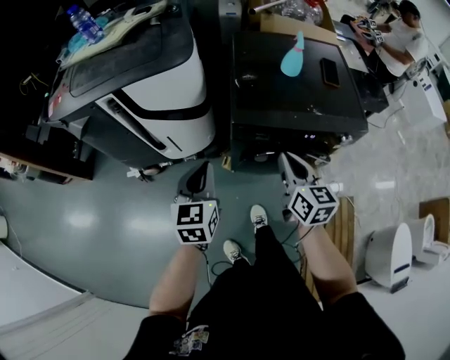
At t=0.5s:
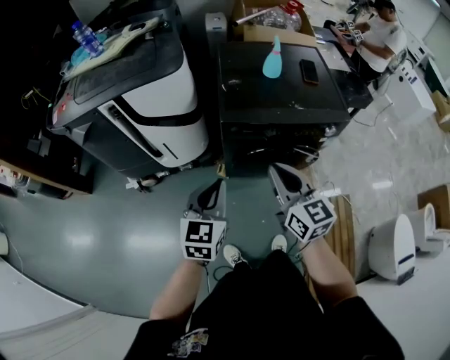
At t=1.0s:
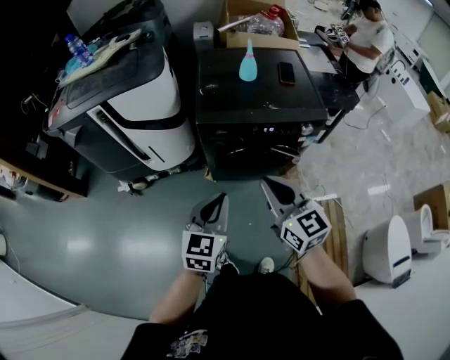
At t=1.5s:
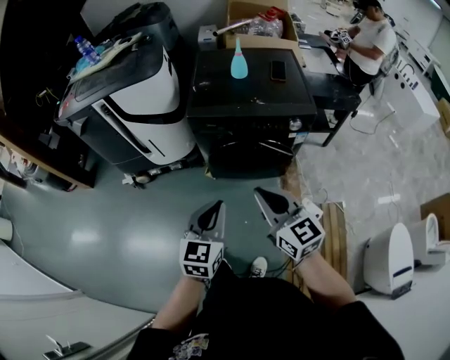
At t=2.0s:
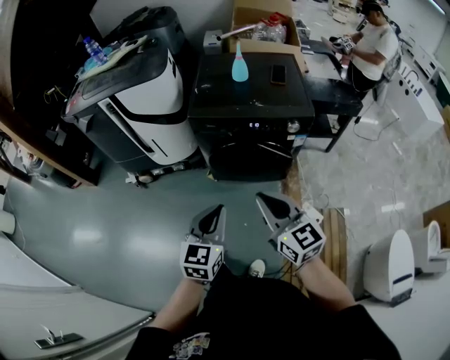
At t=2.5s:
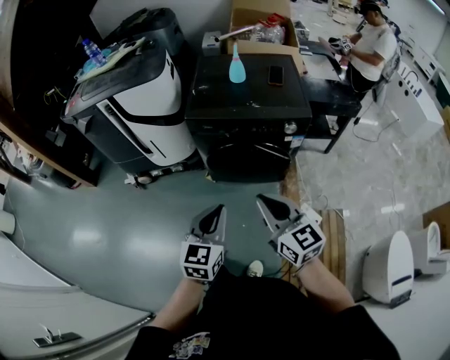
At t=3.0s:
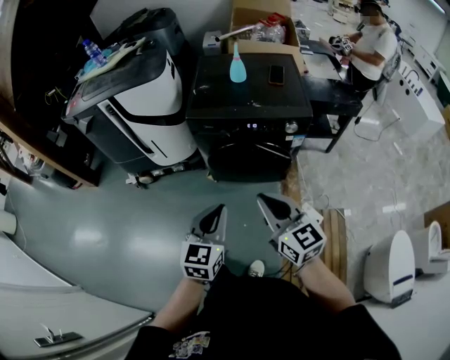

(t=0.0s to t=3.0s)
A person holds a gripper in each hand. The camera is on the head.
t=0.0s - t=1.5s: The two grippers go roughly 35 cm backward and to the right. The right gripper rotates roughly 30 degrees.
t=1.5s - t=3.0s: The left gripper shifts by roughly 5 cm. The right gripper shifts by some 5 cm.

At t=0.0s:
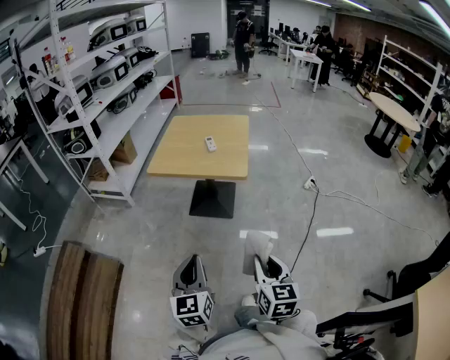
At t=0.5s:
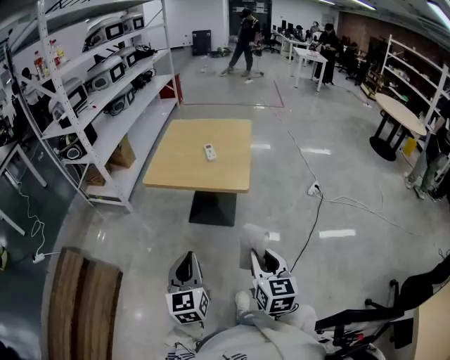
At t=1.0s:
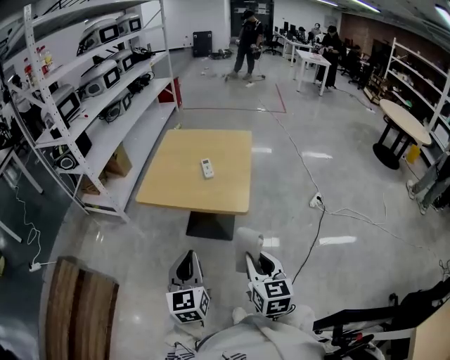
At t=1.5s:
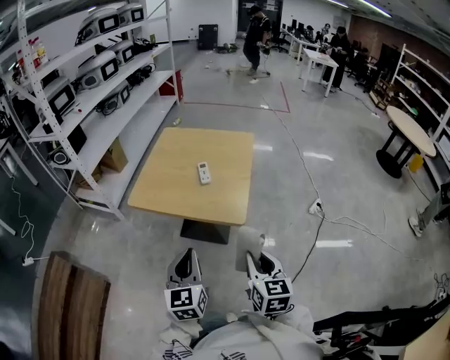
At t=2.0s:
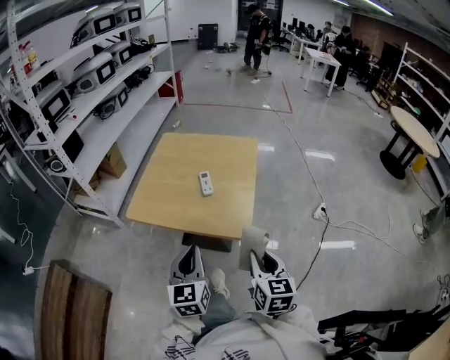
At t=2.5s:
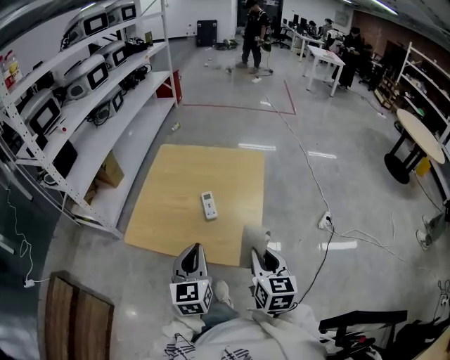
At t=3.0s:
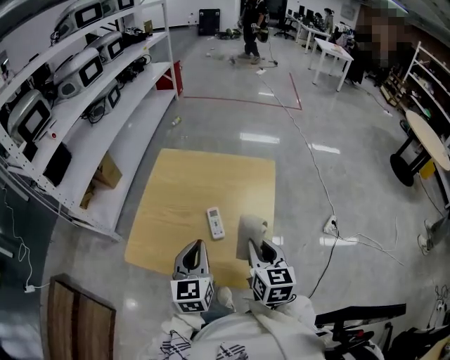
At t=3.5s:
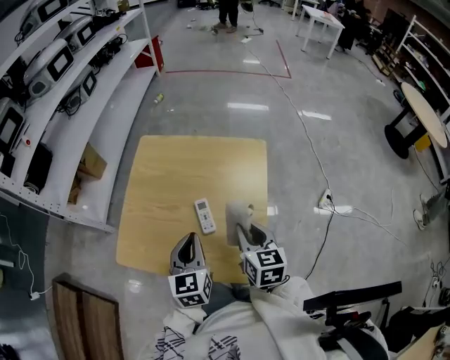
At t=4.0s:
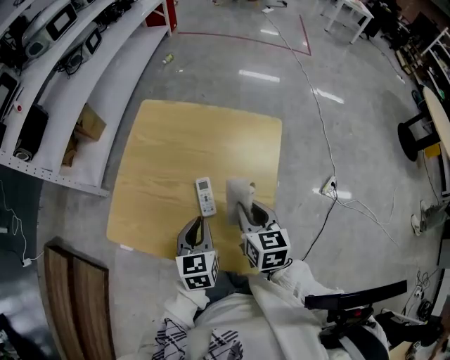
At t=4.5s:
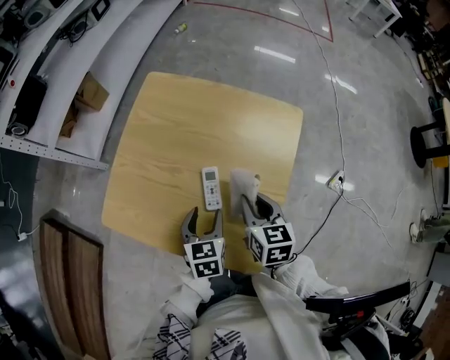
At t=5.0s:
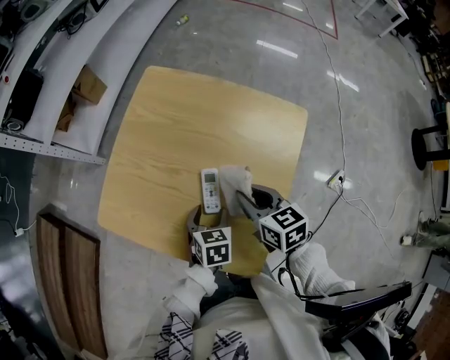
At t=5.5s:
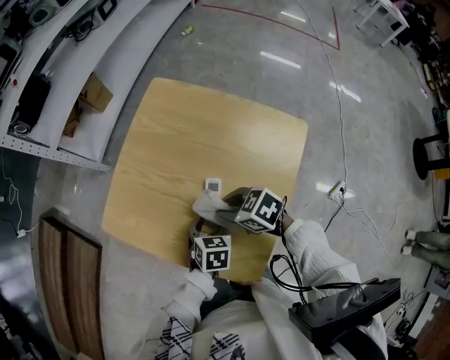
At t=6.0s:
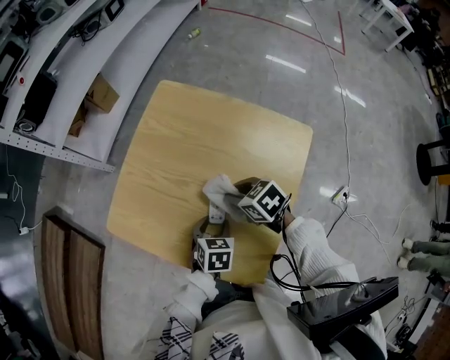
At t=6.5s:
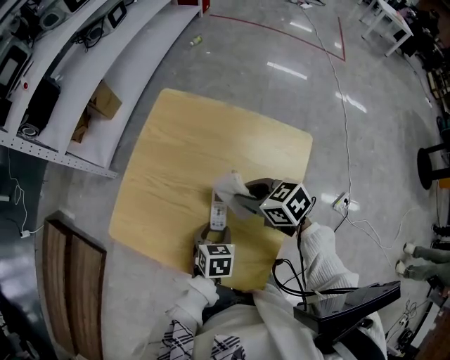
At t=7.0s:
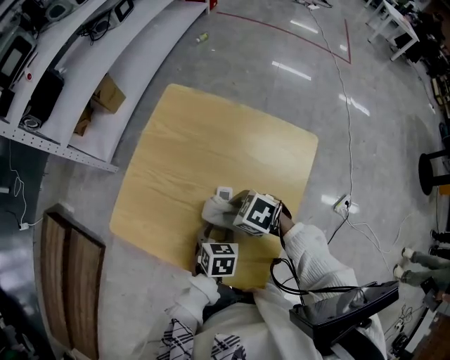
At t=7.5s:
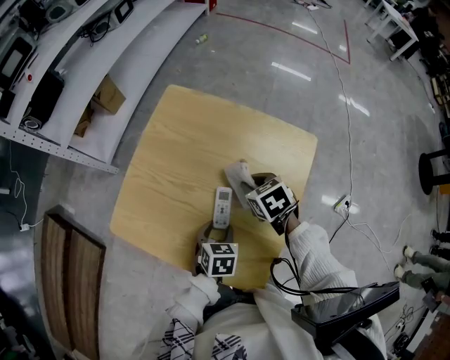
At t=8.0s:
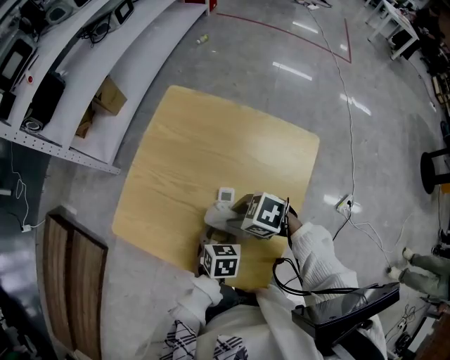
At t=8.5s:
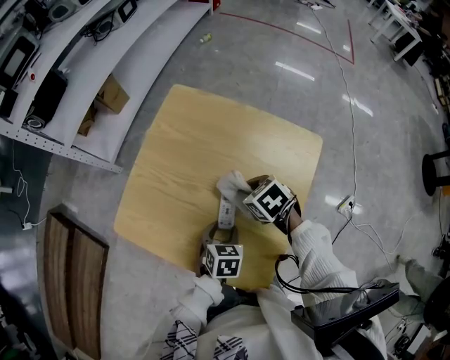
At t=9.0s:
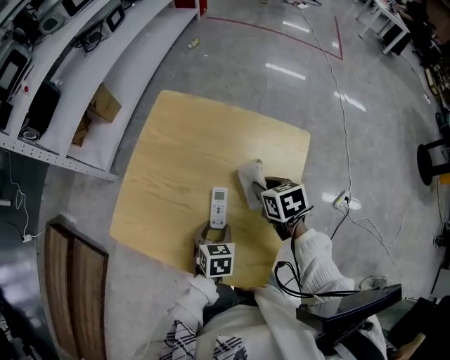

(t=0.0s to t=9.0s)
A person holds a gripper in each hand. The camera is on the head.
t=0.0s - t=2.0s: Both grippers move forward, roughly 35 cm.
t=2.0s - t=4.5s: The right gripper heads forward, covering approximately 35 cm, and changes its angle by some 20 degrees. The left gripper is displaced forward and downward by some 35 cm, tips its fingers downward by roughly 30 degrees, and opens its fingers.
t=4.5s - t=7.0s: The left gripper moves downward, approximately 5 cm; the right gripper swings up and down, about 5 cm each way, with 2 reversals, and swivels approximately 70 degrees.
t=7.0s - t=9.0s: The right gripper moves approximately 15 cm, and turns by about 50 degrees.

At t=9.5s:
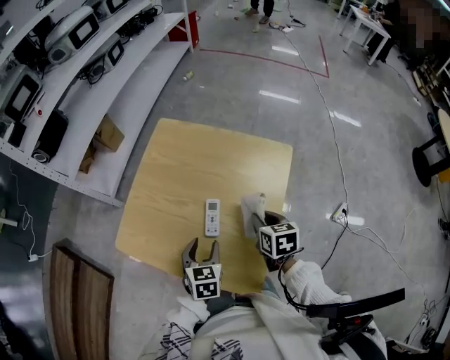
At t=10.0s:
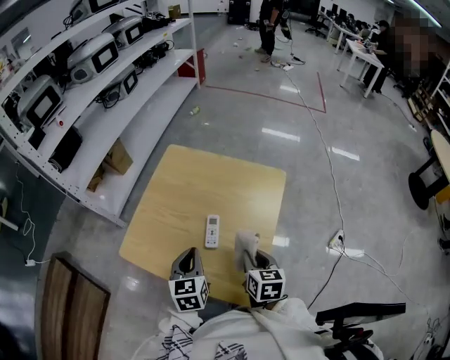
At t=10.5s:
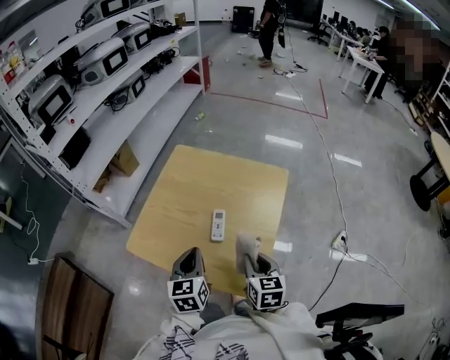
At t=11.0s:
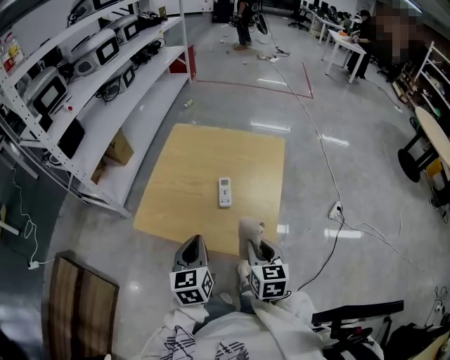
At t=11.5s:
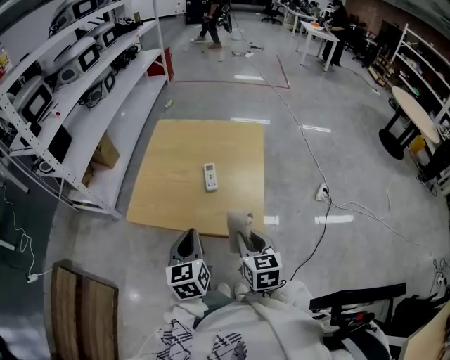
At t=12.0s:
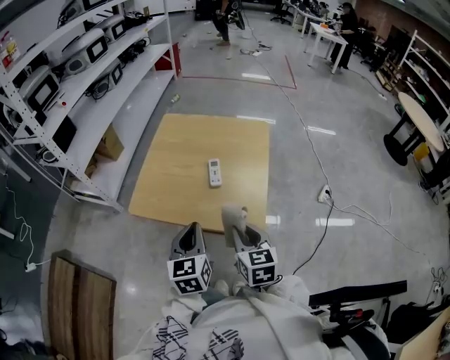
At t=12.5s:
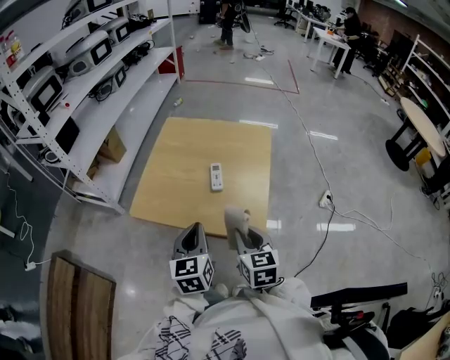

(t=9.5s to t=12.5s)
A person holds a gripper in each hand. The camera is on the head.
t=9.5s - t=11.0s: The right gripper moves backward and to the left, some 25 cm, and turns by about 20 degrees, while the left gripper travels upward, backward and to the left by roughly 20 cm, swivels approximately 20 degrees, and closes up.
t=11.0s - t=12.5s: The left gripper changes place by roughly 5 cm, while the right gripper changes place by about 5 cm.

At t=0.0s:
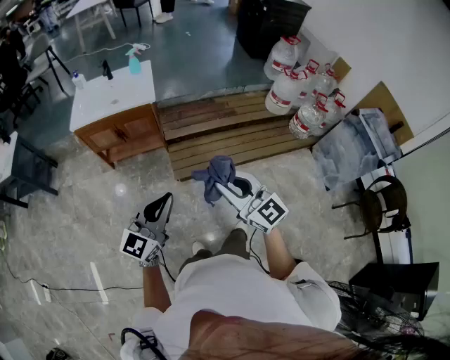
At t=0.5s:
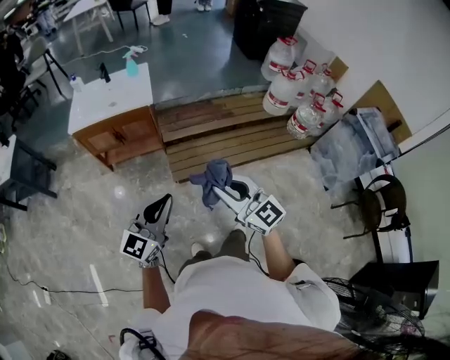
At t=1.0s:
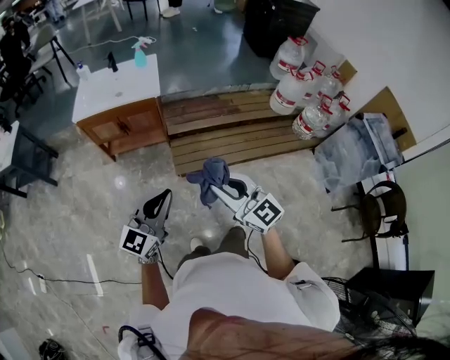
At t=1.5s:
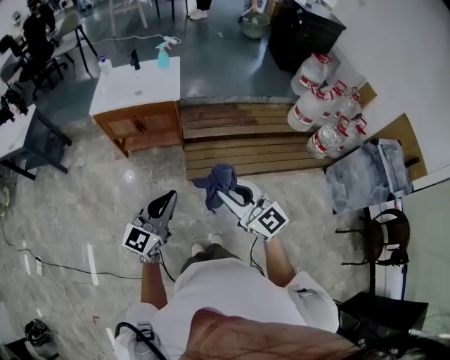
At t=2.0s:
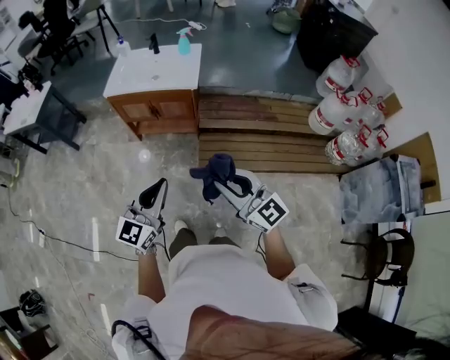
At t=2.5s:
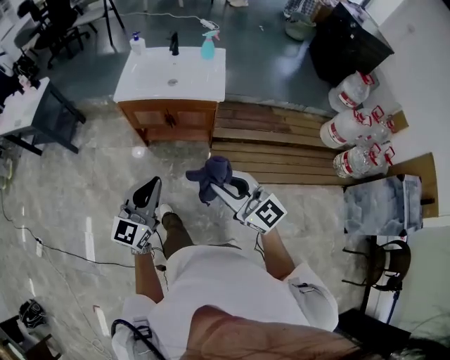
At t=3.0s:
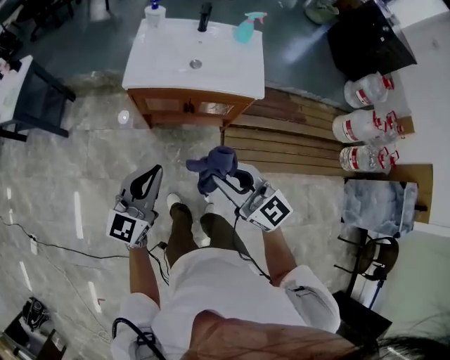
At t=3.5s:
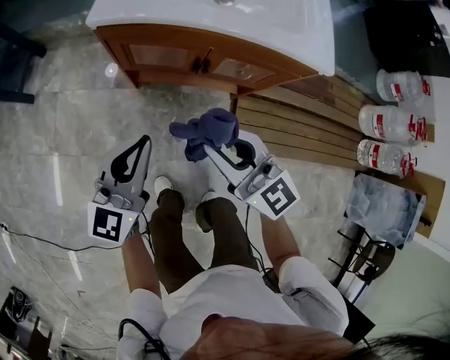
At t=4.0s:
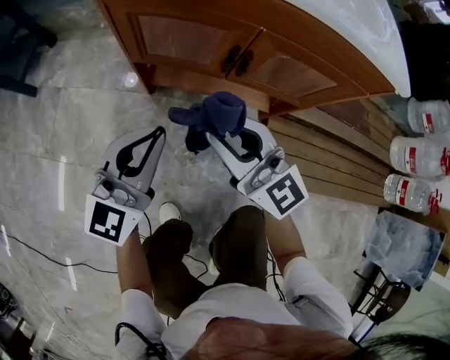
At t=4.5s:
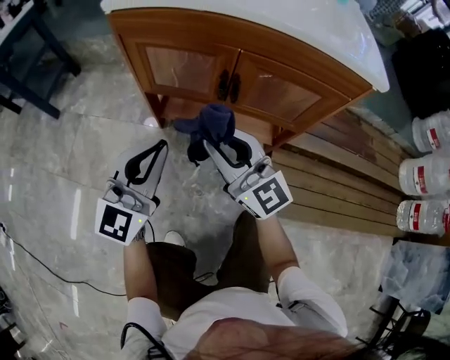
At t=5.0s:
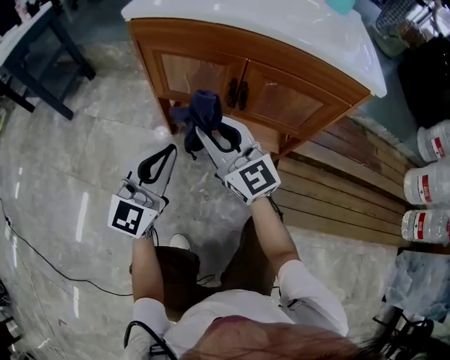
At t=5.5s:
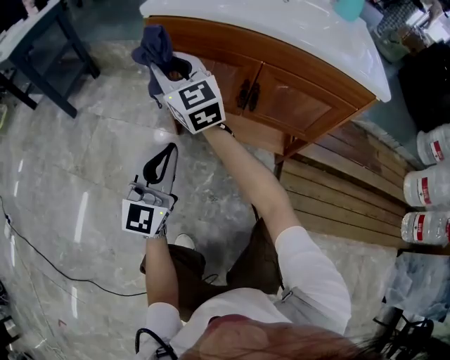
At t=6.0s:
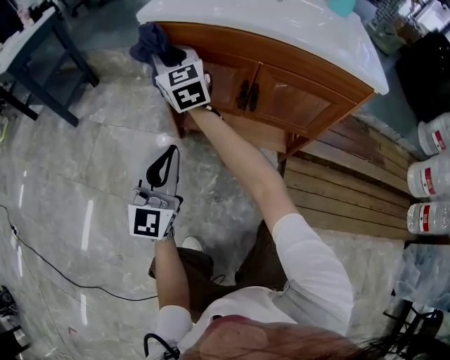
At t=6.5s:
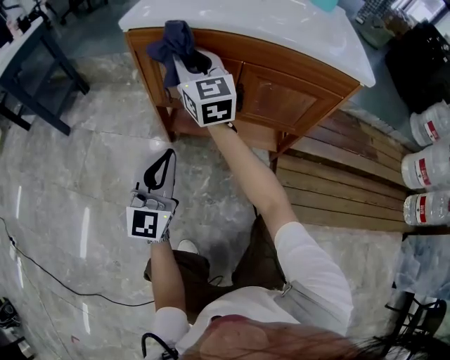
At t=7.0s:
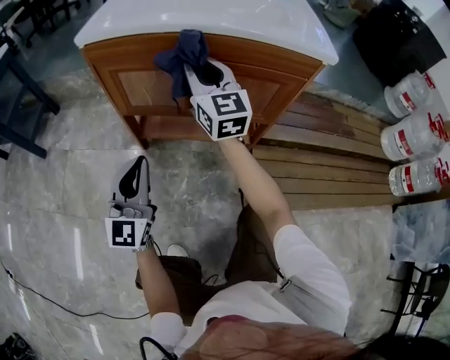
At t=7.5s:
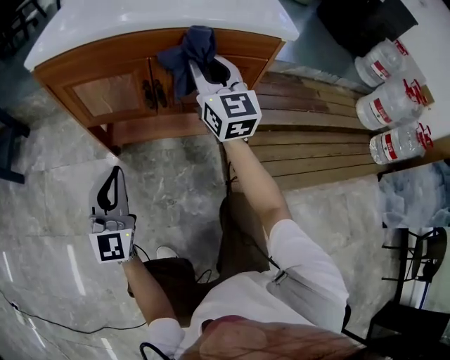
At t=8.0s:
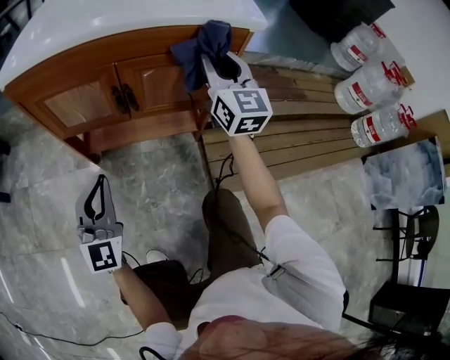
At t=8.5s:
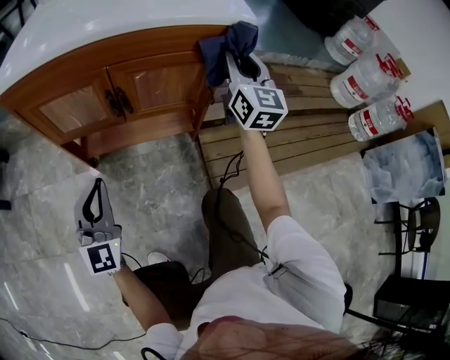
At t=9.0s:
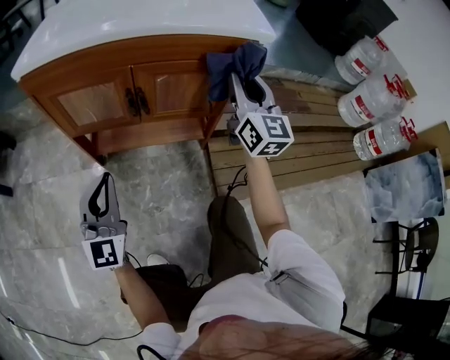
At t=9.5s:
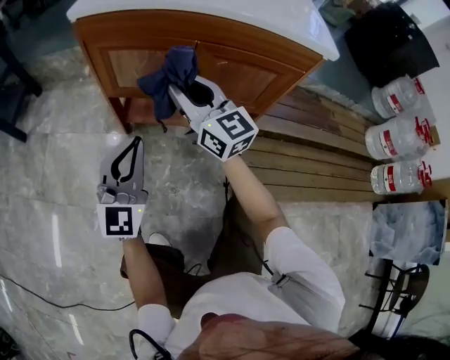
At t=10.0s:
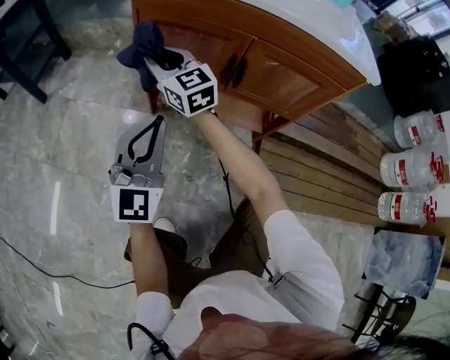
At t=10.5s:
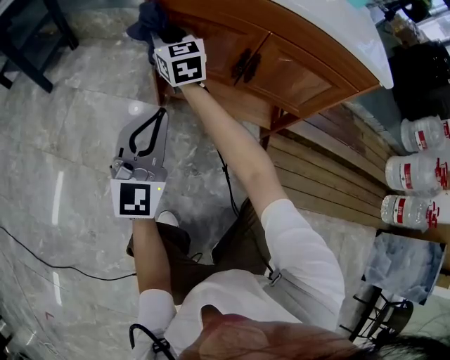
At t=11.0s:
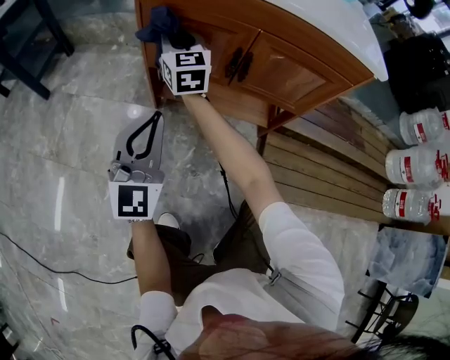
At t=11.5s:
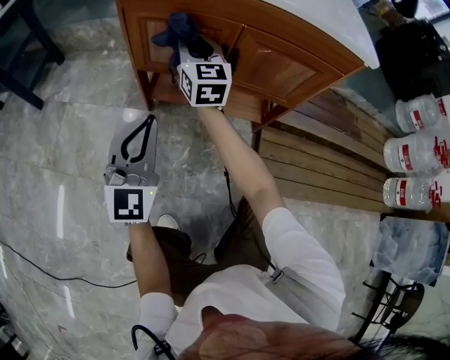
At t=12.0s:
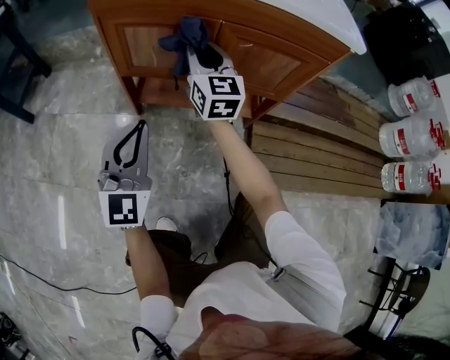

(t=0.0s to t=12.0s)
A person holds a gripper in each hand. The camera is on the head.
t=0.0s - t=2.0s: The two grippers go about 5 cm forward. The left gripper changes its angle by some 20 degrees.
t=2.0s - t=4.0s: The pair of grippers is taken forward and to the left, some 60 cm. Both grippers travel together downward, approximately 50 cm.
t=4.0s - t=6.0s: The right gripper moves forward and to the left, approximately 25 cm. Meanwhile the left gripper changes its angle by some 20 degrees.
t=6.0s - t=8.0s: The right gripper travels to the right by some 40 cm, and rotates some 30 degrees, while the left gripper shifts roughly 10 cm to the right.
t=8.0s - t=10.0s: The right gripper changes place by some 40 cm, and rotates about 40 degrees. Meanwhile the left gripper moves about 5 cm.
t=10.0s - t=12.0s: The right gripper shifts approximately 20 cm to the right, and turns by roughly 30 degrees.
